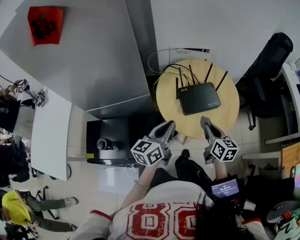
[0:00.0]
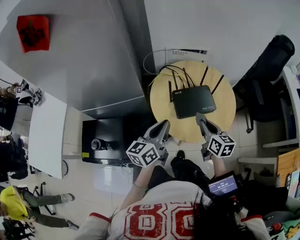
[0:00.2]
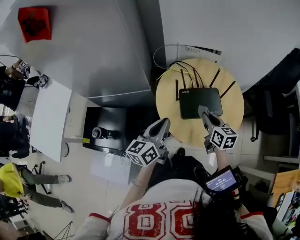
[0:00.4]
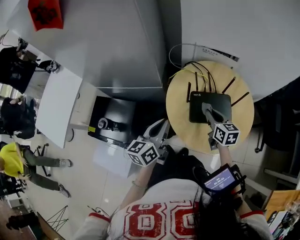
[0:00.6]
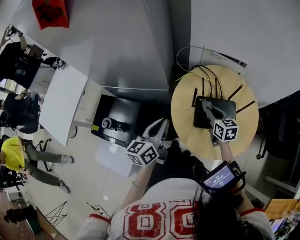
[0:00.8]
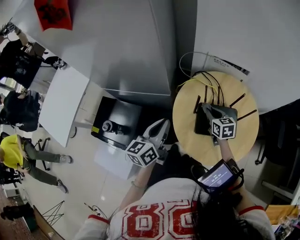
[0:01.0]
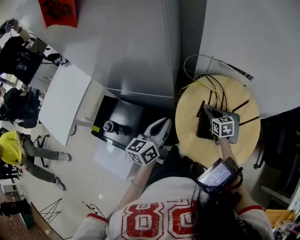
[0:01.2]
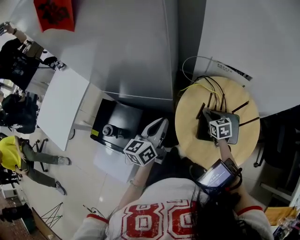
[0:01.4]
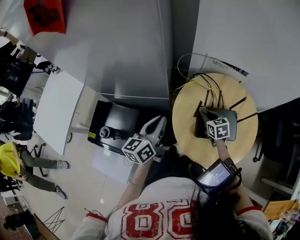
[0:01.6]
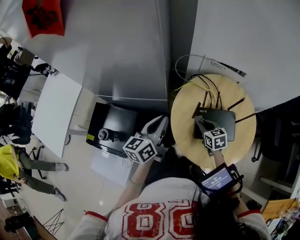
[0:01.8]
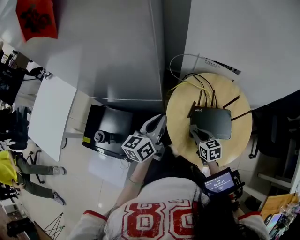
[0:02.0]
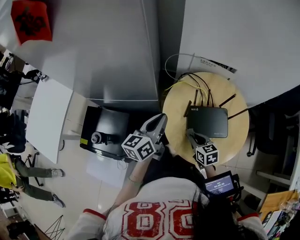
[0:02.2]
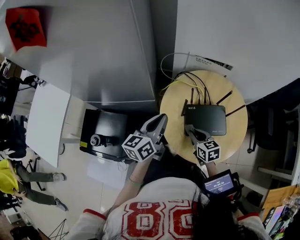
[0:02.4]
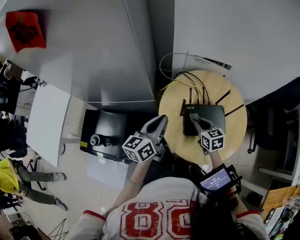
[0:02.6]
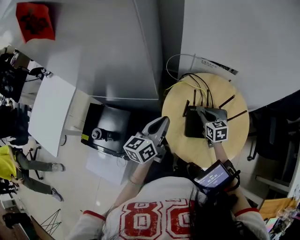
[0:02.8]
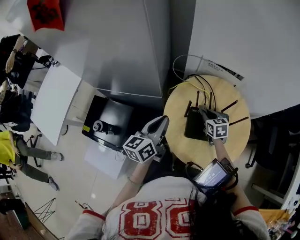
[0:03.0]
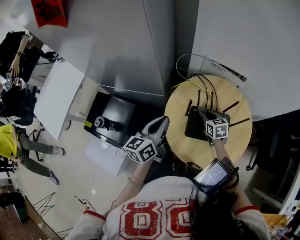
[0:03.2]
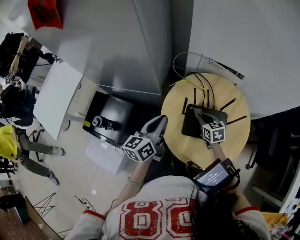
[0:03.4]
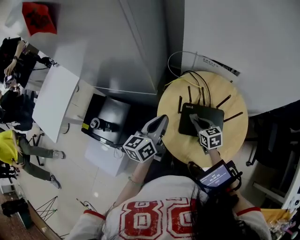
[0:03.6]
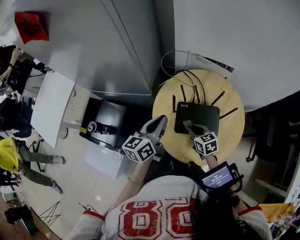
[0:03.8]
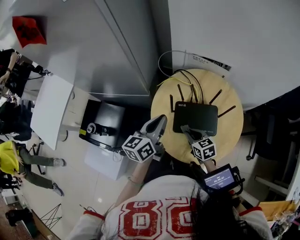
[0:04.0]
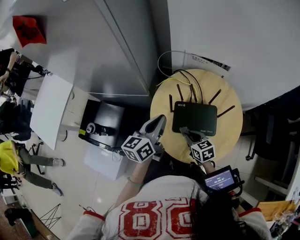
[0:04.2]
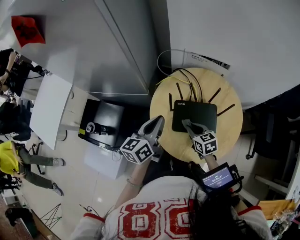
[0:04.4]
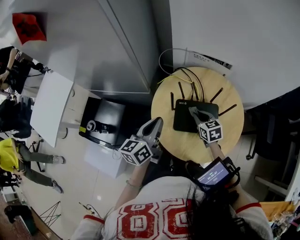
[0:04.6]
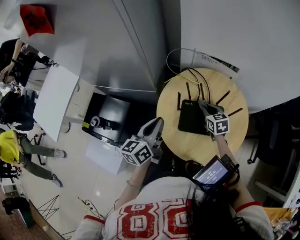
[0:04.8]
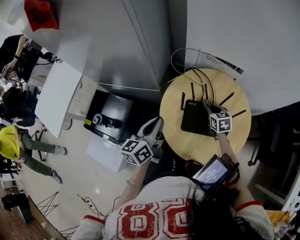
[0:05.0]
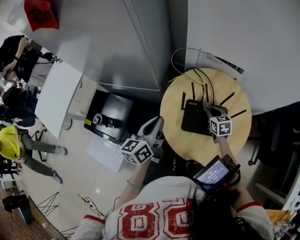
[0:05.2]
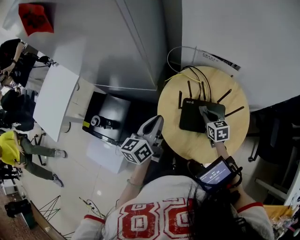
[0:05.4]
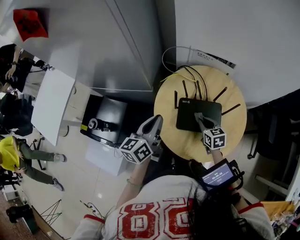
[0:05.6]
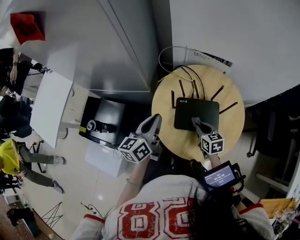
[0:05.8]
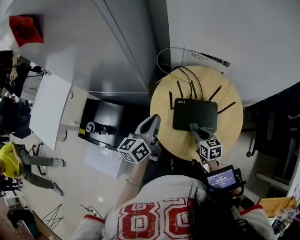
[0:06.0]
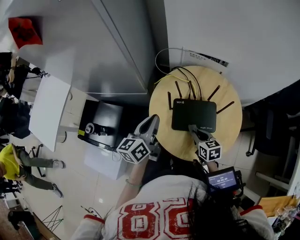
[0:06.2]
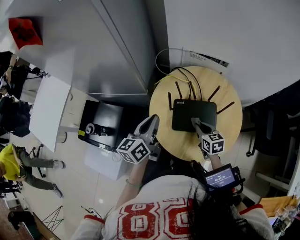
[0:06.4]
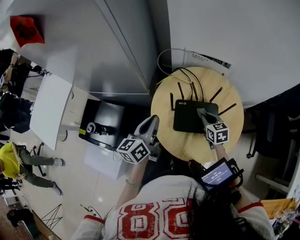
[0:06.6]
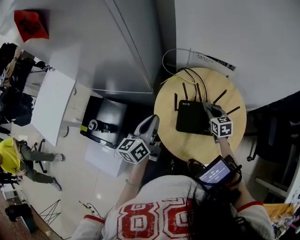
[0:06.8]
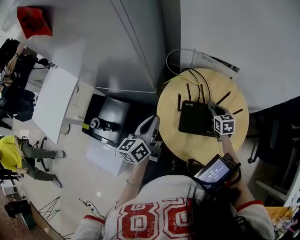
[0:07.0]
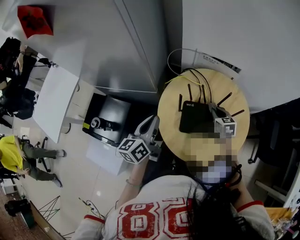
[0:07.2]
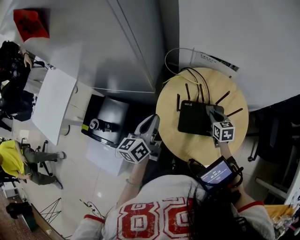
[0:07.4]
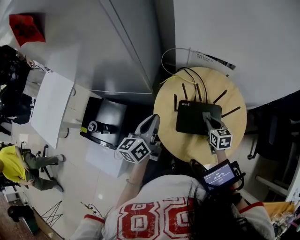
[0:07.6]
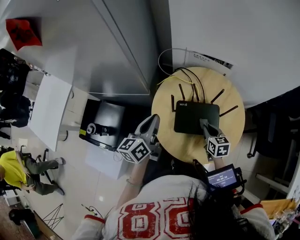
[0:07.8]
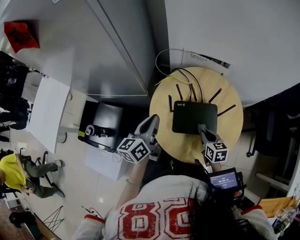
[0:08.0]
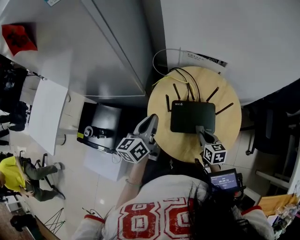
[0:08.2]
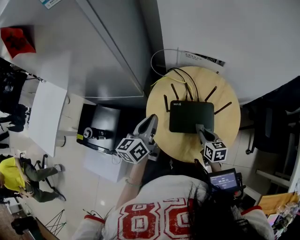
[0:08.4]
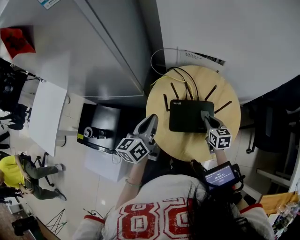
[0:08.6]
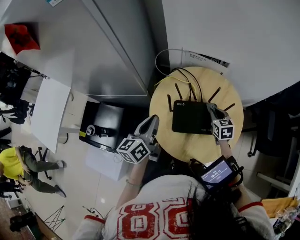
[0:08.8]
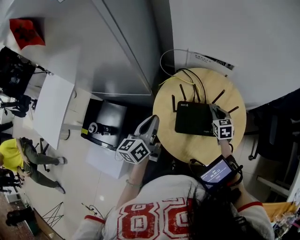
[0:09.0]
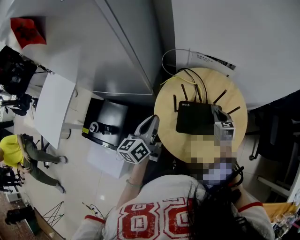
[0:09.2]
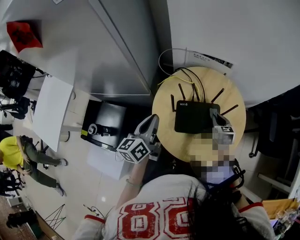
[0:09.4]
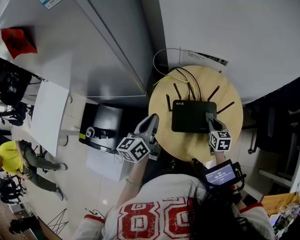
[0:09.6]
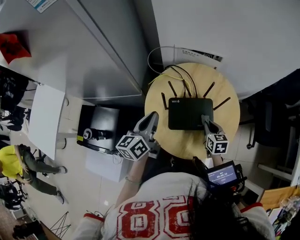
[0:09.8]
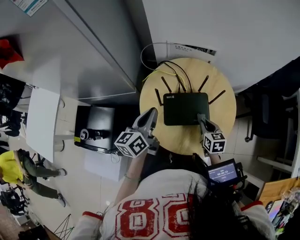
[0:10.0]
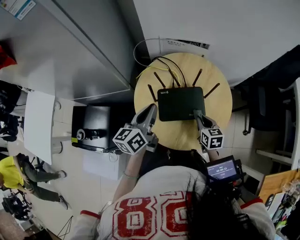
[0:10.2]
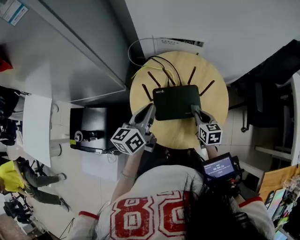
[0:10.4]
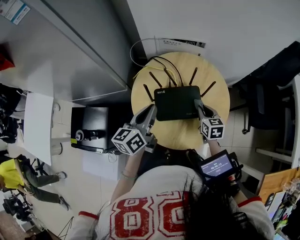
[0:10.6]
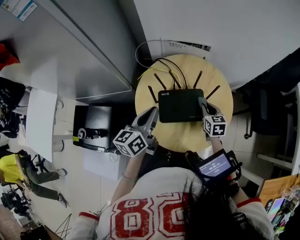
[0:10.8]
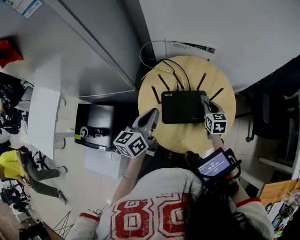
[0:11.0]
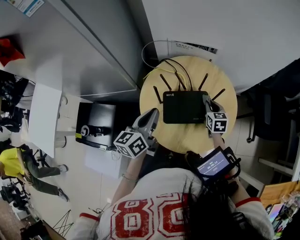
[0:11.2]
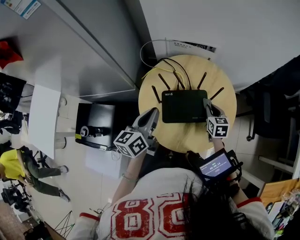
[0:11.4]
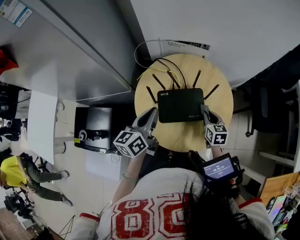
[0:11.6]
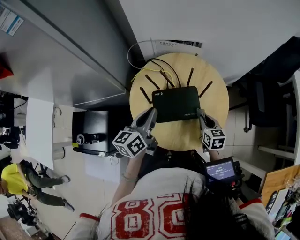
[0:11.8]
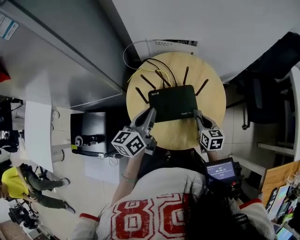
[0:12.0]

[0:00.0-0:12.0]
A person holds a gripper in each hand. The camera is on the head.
0:00.0 to 0:01.6: The right gripper ends up approximately 25 cm from where it was, and changes its angle by some 40 degrees. The left gripper moves approximately 15 cm, and turns by approximately 20 degrees.
0:01.6 to 0:03.0: The left gripper is displaced to the right by roughly 5 cm. Meanwhile the right gripper travels backward and back again, approximately 10 cm each way.
0:03.0 to 0:04.4: The right gripper goes about 10 cm backward; the left gripper heads to the right, covering roughly 5 cm.
0:04.4 to 0:06.0: The right gripper travels forward and back again, about 10 cm each way.
0:06.0 to 0:07.6: The right gripper shifts about 10 cm forward and to the right.
0:07.6 to 0:09.0: The right gripper goes some 5 cm forward.
0:09.0 to 0:10.4: The left gripper shifts approximately 10 cm to the right; the right gripper goes about 10 cm backward.
0:10.4 to 0:12.0: The right gripper travels forward and back again, approximately 10 cm each way.

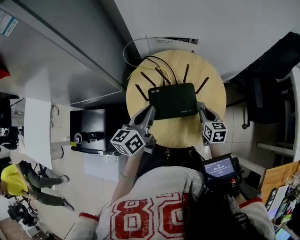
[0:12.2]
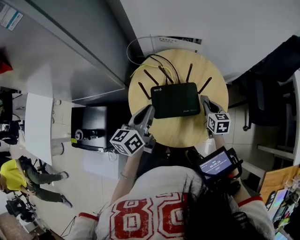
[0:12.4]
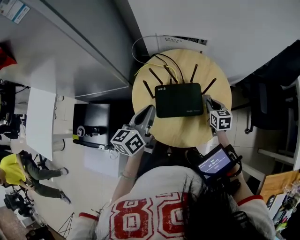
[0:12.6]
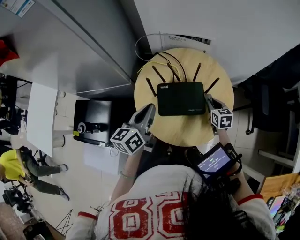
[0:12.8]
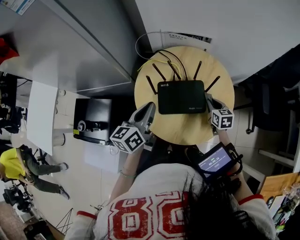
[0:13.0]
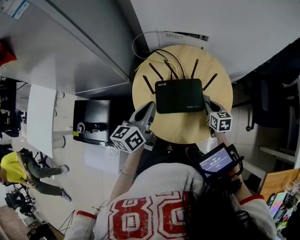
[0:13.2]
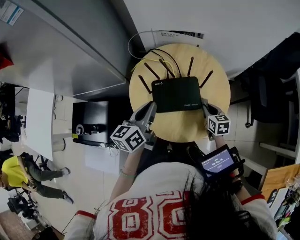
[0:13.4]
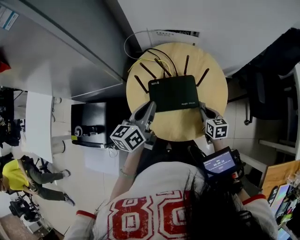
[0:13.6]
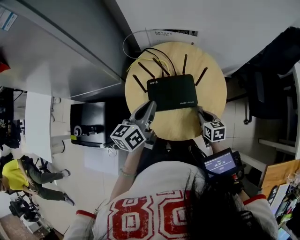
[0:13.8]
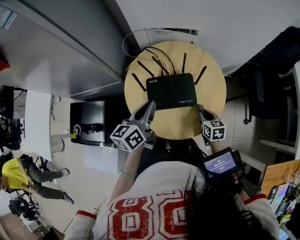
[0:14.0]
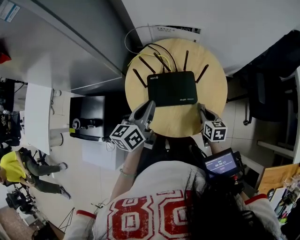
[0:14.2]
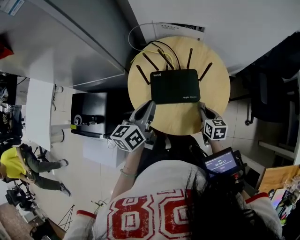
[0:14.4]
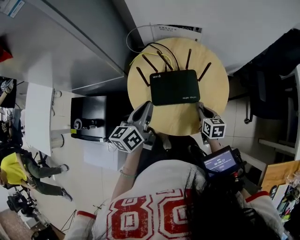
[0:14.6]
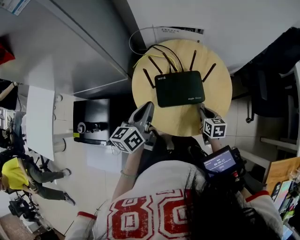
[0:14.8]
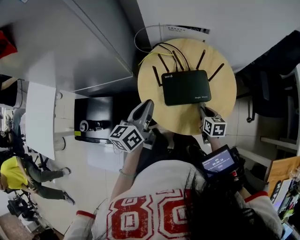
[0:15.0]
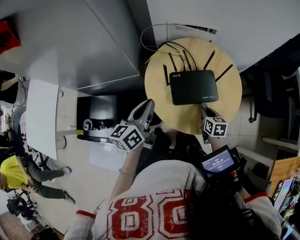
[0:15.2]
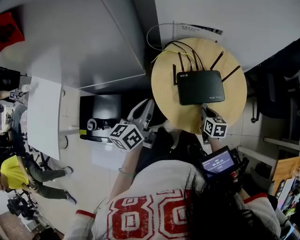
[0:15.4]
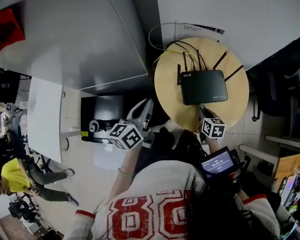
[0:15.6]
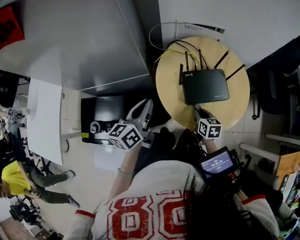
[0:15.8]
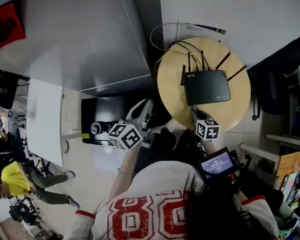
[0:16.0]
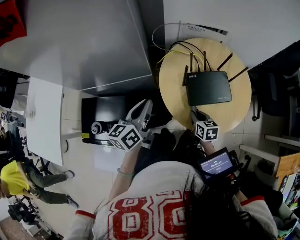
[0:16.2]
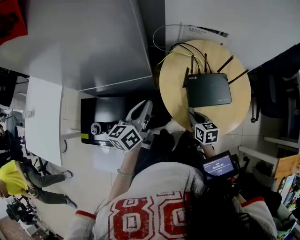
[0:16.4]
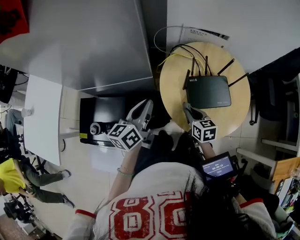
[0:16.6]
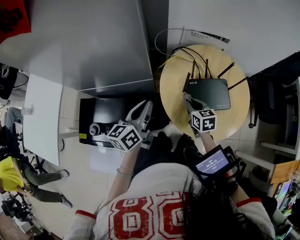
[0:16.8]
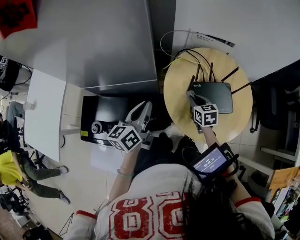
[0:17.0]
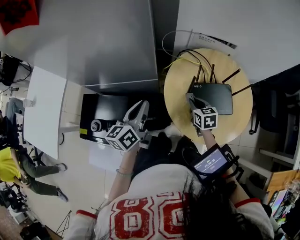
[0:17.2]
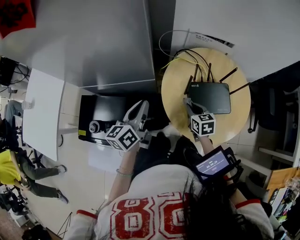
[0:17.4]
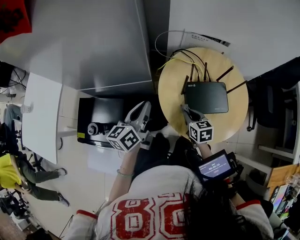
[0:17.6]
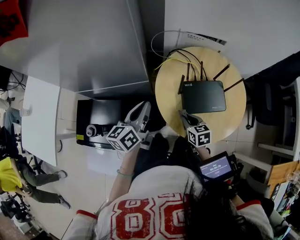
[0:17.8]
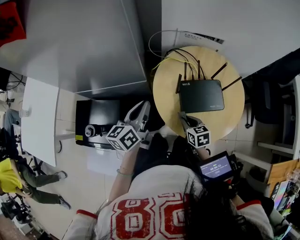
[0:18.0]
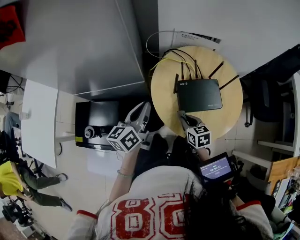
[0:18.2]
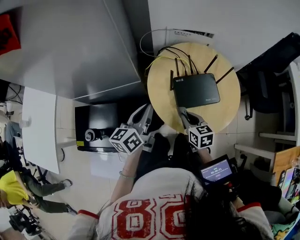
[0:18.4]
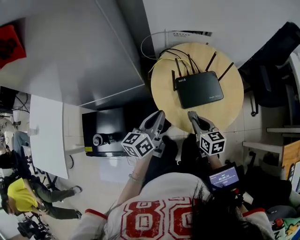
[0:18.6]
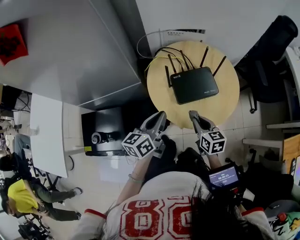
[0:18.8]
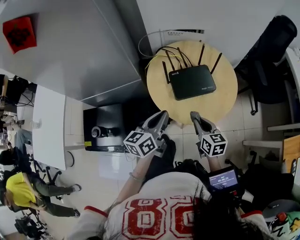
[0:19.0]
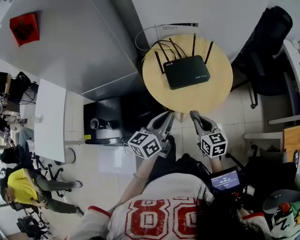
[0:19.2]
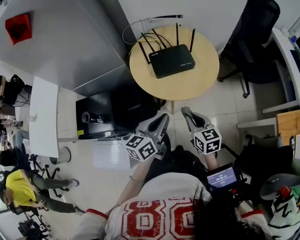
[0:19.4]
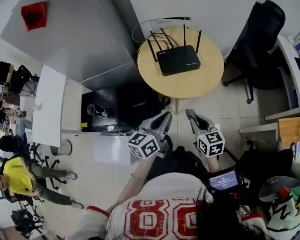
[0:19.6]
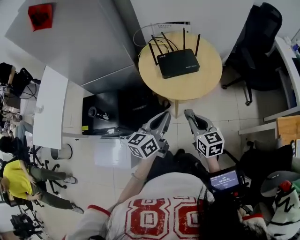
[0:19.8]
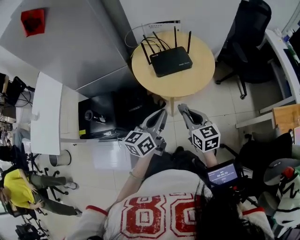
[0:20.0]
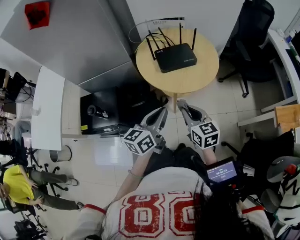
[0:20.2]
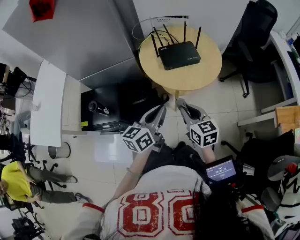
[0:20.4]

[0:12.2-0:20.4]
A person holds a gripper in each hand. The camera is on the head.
0:12.2 to 0:13.8: The right gripper goes about 10 cm backward and downward.
0:13.8 to 0:15.4: Both grippers move to the left, some 15 cm.
0:15.4 to 0:17.2: The right gripper shifts approximately 15 cm to the left and forward. The left gripper heads to the left, covering approximately 10 cm.
0:17.2 to 0:18.8: The right gripper goes roughly 15 cm backward and to the right. The left gripper heads to the right and backward, covering some 15 cm, and changes its angle by roughly 20 degrees.
0:18.8 to 0:20.4: The right gripper shifts some 20 cm backward and upward. The left gripper moves backward, roughly 20 cm.

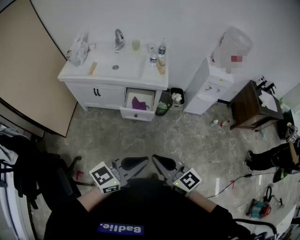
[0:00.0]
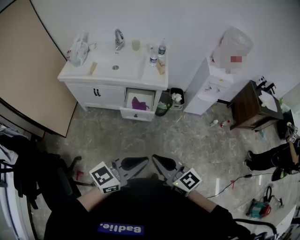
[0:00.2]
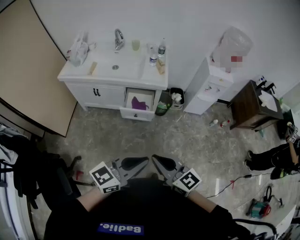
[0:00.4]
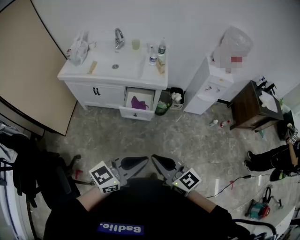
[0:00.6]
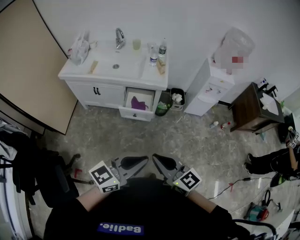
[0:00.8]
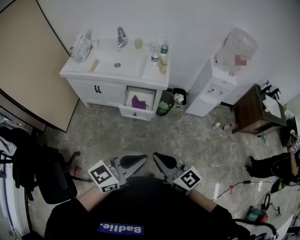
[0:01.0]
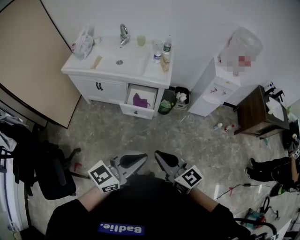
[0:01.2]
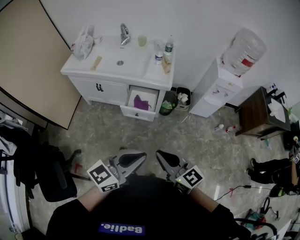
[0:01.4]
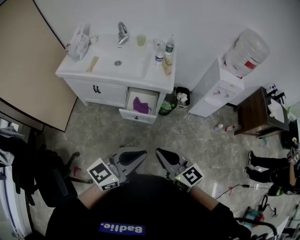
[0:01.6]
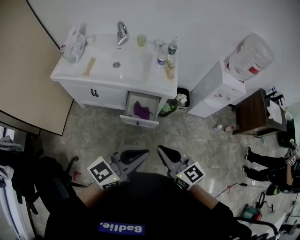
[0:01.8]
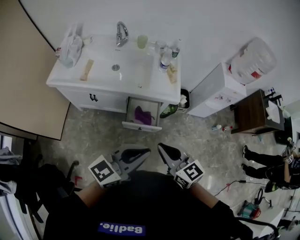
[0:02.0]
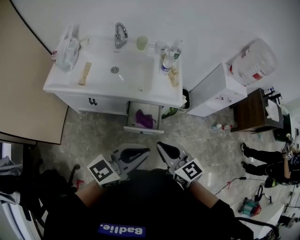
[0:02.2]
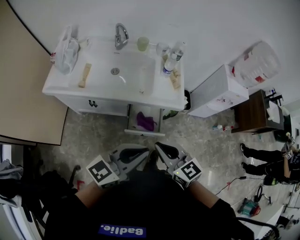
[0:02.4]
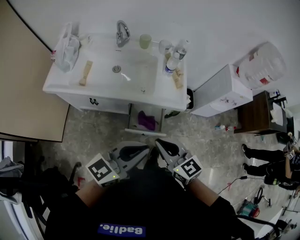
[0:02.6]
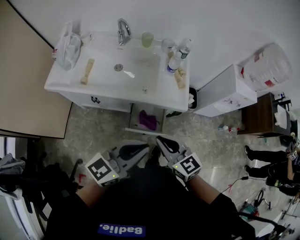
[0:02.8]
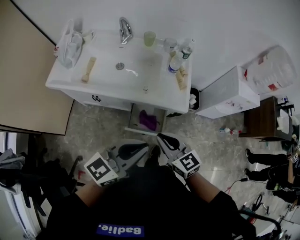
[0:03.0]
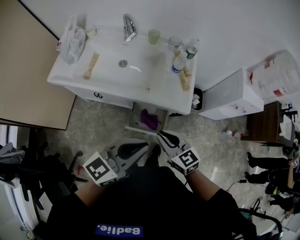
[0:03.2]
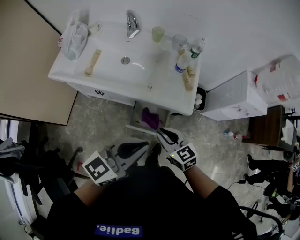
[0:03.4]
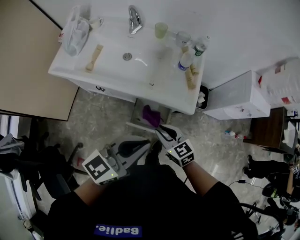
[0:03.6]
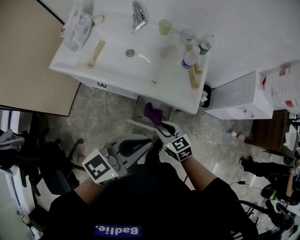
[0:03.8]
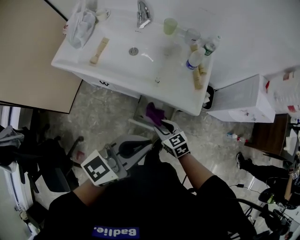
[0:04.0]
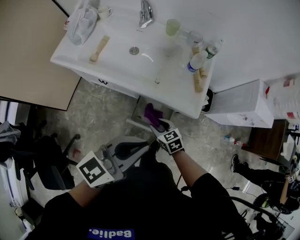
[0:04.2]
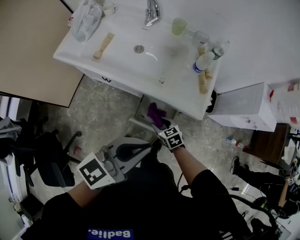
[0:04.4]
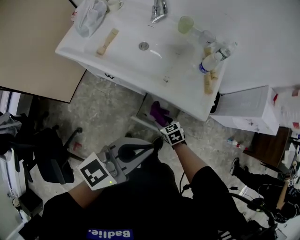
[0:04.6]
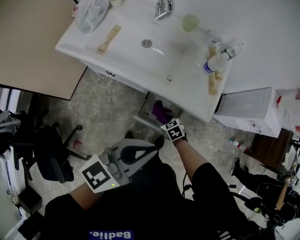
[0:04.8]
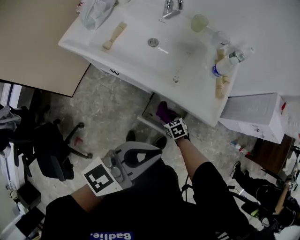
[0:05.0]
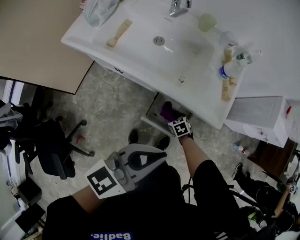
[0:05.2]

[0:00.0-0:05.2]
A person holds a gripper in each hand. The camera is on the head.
0:00.0 to 0:01.8: Both grippers travel together forward, about 20 cm.
0:01.8 to 0:03.4: The left gripper heads forward, covering approximately 20 cm, while the right gripper heads forward and downward, covering about 25 cm.
0:03.4 to 0:05.2: The right gripper goes approximately 35 cm downward, angles its fingers downward, by roughly 40 degrees, and opens its fingers. The left gripper travels downward by roughly 5 cm.
